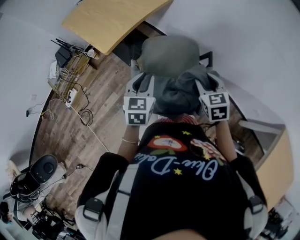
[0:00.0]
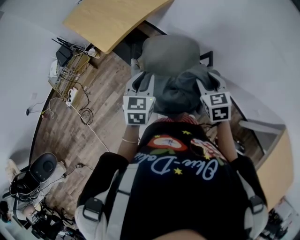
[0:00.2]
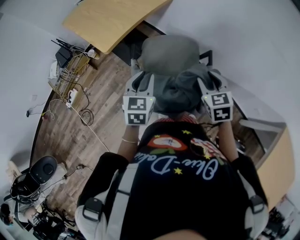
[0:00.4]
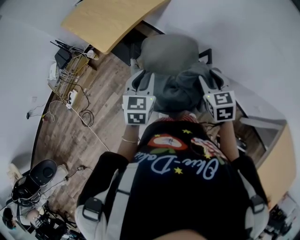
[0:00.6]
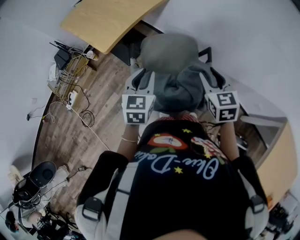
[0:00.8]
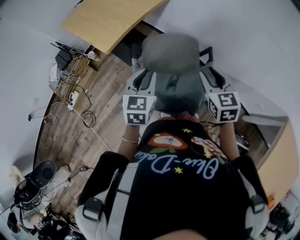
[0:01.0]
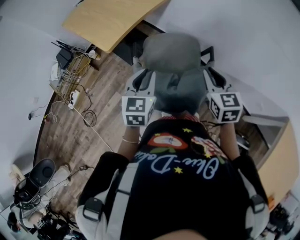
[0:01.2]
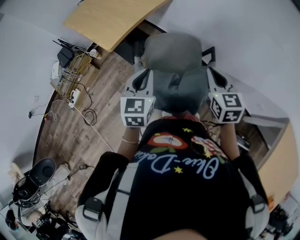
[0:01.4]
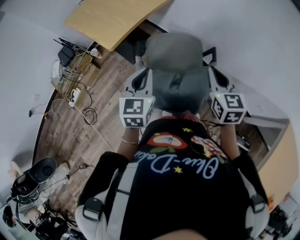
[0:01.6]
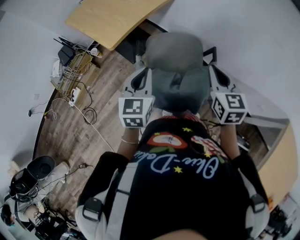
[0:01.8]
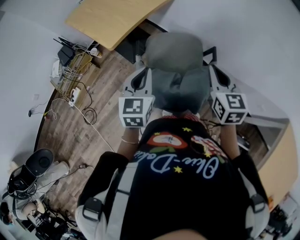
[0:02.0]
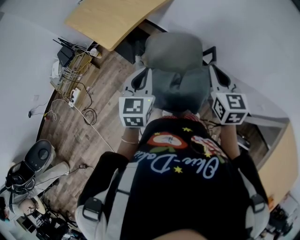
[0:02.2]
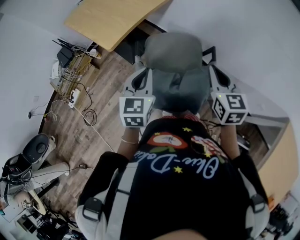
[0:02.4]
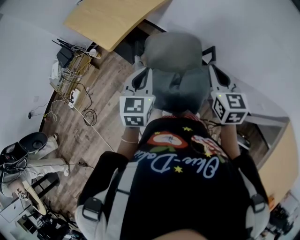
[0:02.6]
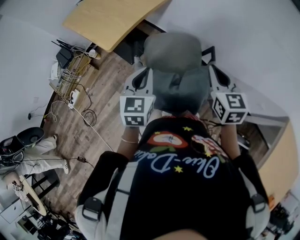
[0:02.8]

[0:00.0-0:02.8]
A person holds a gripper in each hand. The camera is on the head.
0:00.0 to 0:01.4: The right gripper heads upward, covering about 5 cm, and closes; the left gripper moves approximately 5 cm.
0:01.4 to 0:02.8: The grippers move only a little.

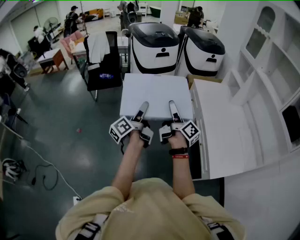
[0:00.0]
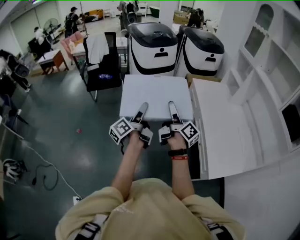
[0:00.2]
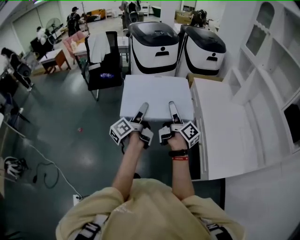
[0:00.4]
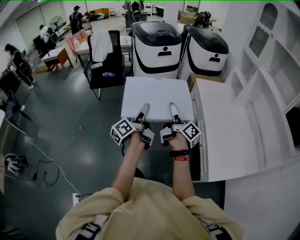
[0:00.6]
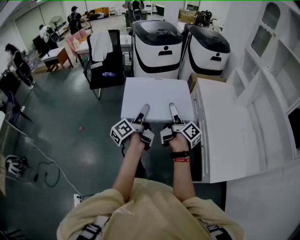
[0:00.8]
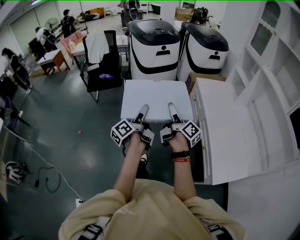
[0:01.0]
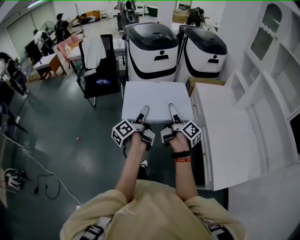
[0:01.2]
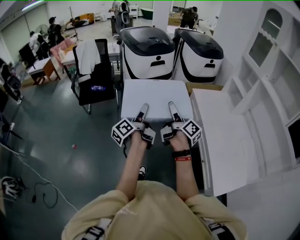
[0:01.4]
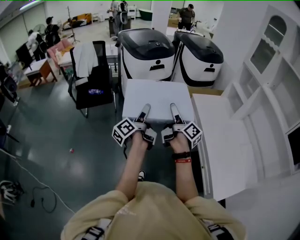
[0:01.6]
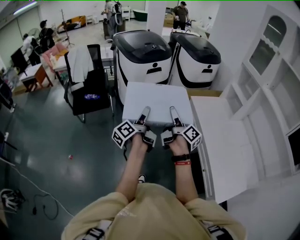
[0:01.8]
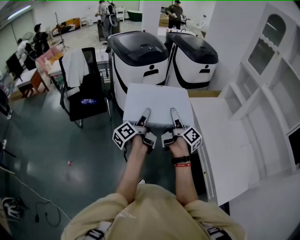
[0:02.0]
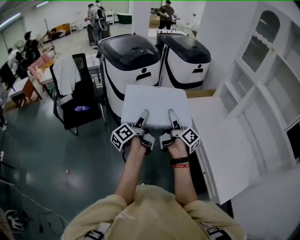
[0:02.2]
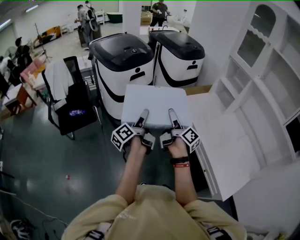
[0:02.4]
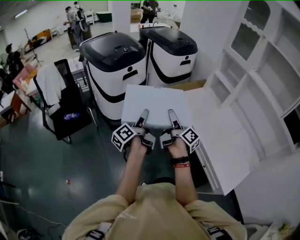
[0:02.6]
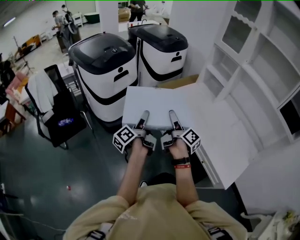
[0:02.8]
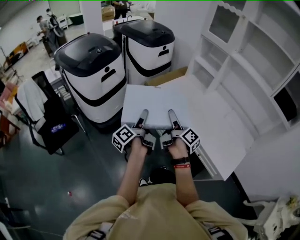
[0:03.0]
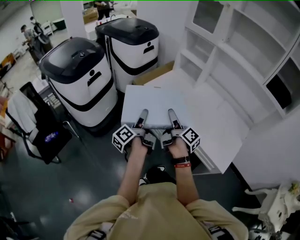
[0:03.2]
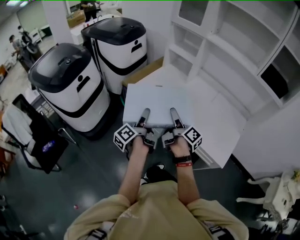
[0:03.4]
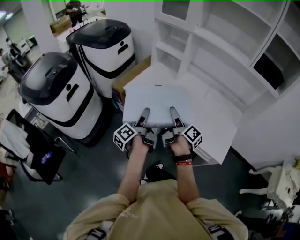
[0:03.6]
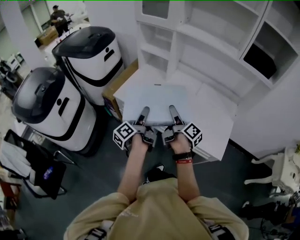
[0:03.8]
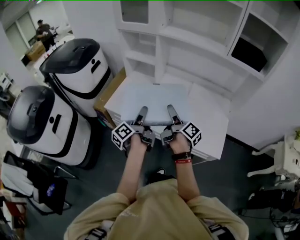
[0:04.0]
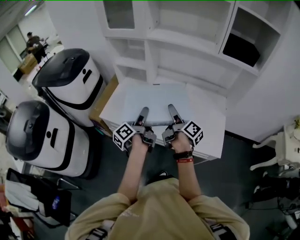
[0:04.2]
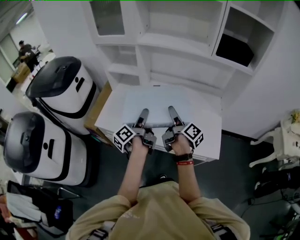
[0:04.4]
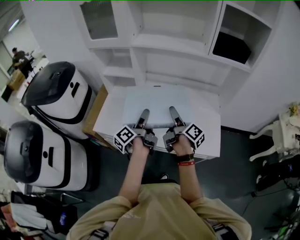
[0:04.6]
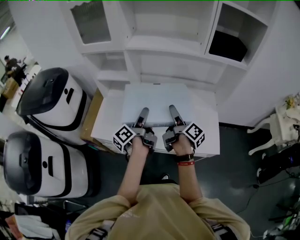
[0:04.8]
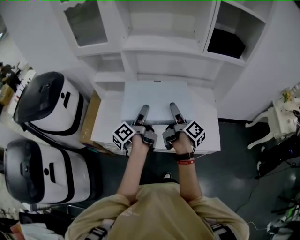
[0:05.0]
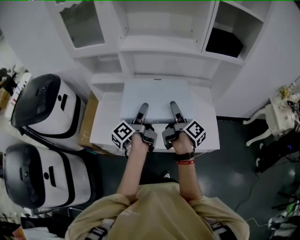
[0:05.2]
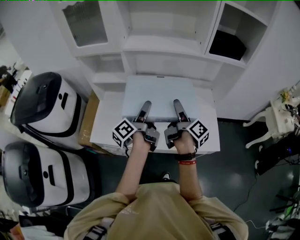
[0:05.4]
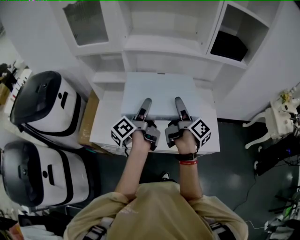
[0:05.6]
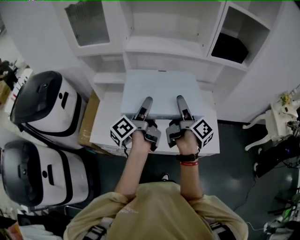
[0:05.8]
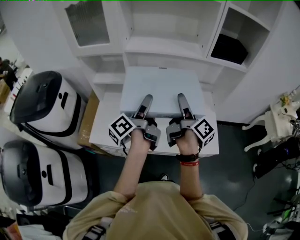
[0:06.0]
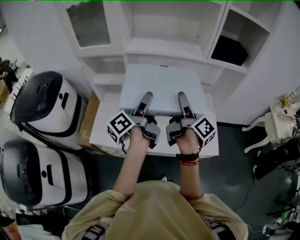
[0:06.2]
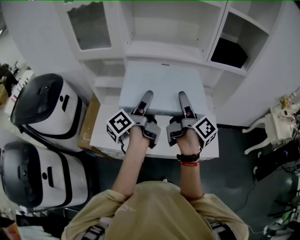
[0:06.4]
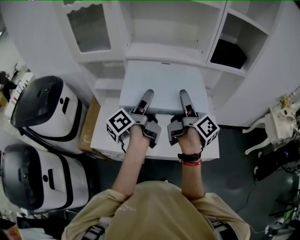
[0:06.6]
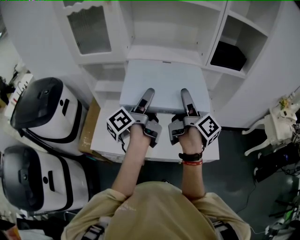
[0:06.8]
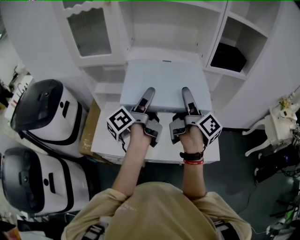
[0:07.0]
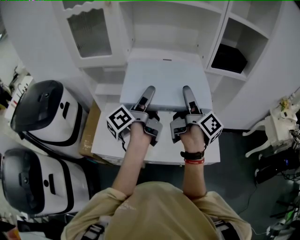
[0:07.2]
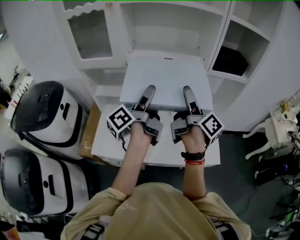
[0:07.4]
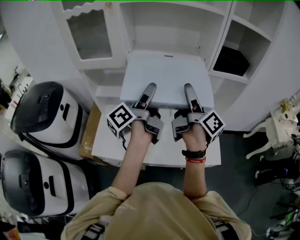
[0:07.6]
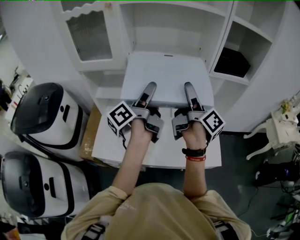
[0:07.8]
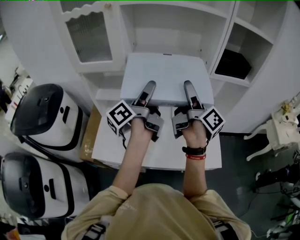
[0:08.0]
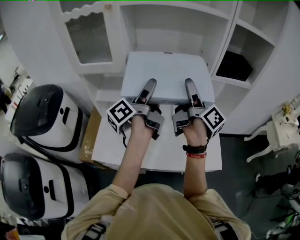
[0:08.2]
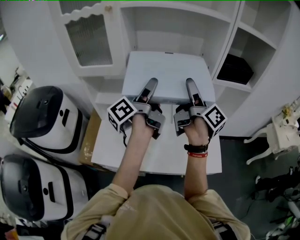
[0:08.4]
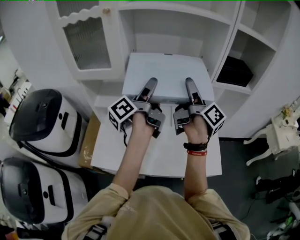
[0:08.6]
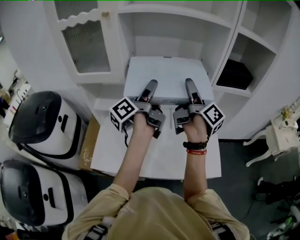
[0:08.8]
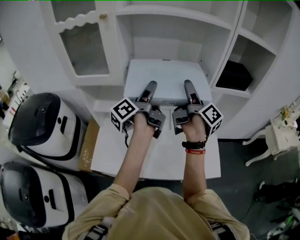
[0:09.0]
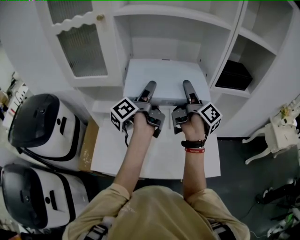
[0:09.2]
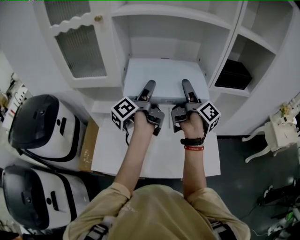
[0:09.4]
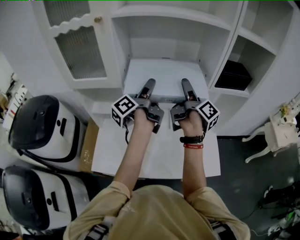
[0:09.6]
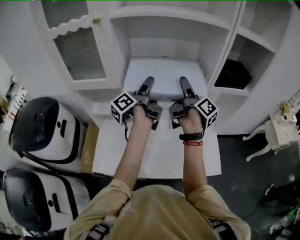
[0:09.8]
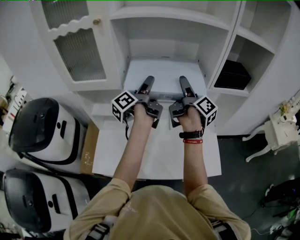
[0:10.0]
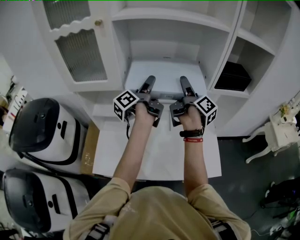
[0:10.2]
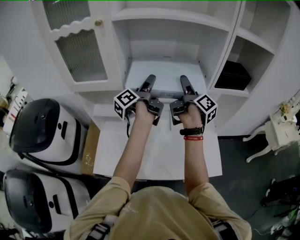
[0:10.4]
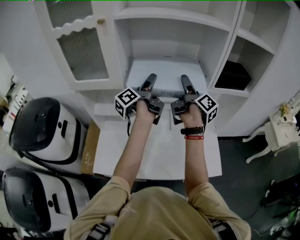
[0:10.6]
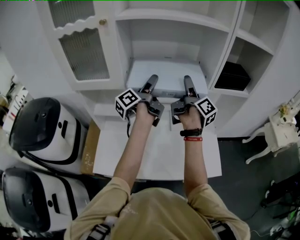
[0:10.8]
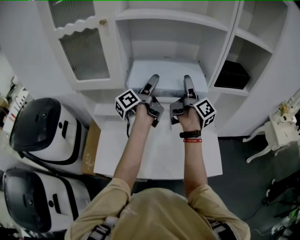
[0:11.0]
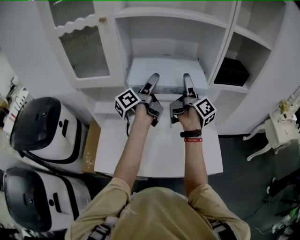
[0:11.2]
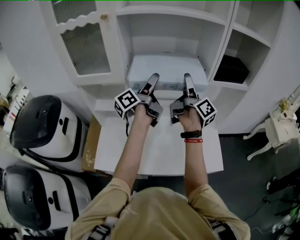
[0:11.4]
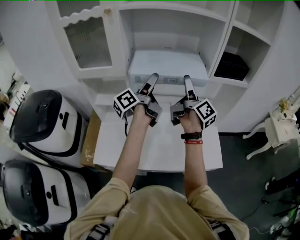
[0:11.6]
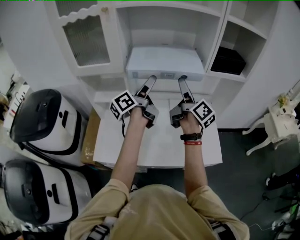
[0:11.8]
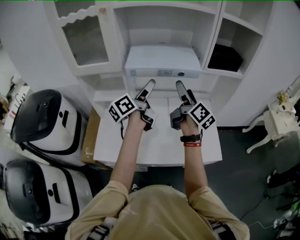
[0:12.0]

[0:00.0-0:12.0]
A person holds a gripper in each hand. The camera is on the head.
0:00.0 to 0:01.6: Both grippers travel together forward, about 25 cm.
0:01.6 to 0:03.0: The right gripper changes place by about 15 cm, and turns by roughly 30 degrees, while the left gripper moves some 20 cm, and turns by roughly 30 degrees.
0:03.0 to 0:04.4: The left gripper moves about 40 cm, and swivels about 40 degrees, while the right gripper moves some 35 cm, and swivels roughly 40 degrees.
0:04.4 to 0:06.0: The left gripper travels upward and forward by approximately 15 cm. Meanwhile the right gripper travels upward by roughly 10 cm.
0:06.0 to 0:07.6: The grippers both shift upward and forward by roughly 10 cm.
0:07.6 to 0:09.0: The grippers both shift forward by roughly 10 cm.
0:09.0 to 0:10.4: The two grippers go some 5 cm forward.
0:10.4 to 0:12.0: Both grippers travel together backward, about 10 cm. The left gripper turns by roughly 20 degrees. Meanwhile the right gripper rotates roughly 30 degrees.

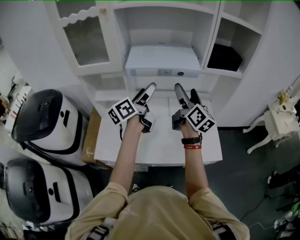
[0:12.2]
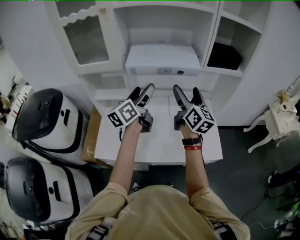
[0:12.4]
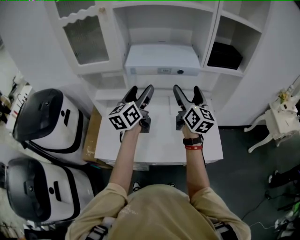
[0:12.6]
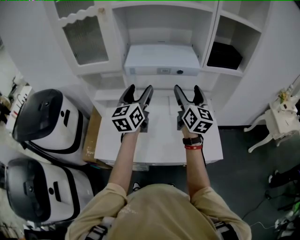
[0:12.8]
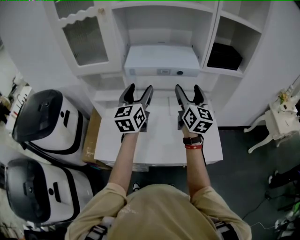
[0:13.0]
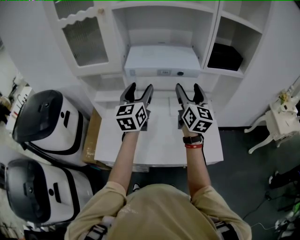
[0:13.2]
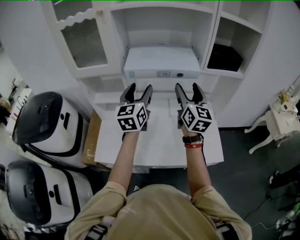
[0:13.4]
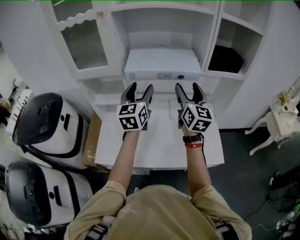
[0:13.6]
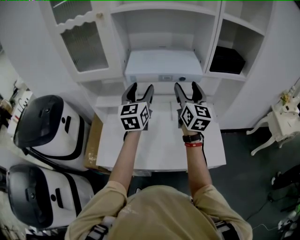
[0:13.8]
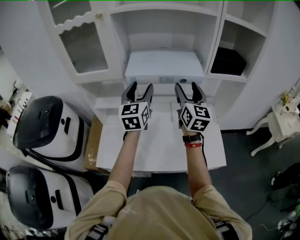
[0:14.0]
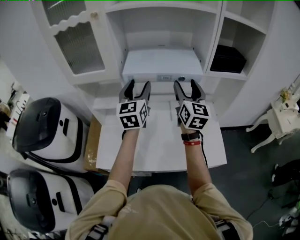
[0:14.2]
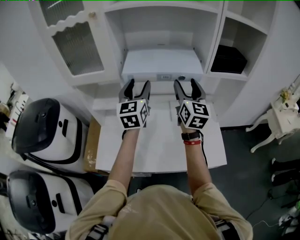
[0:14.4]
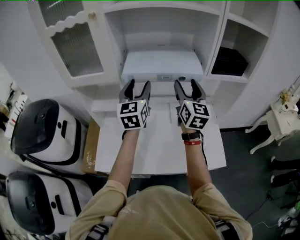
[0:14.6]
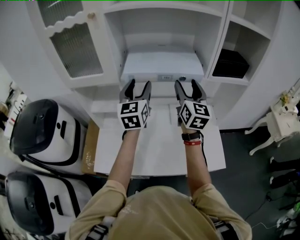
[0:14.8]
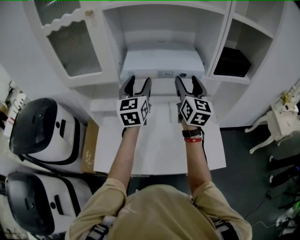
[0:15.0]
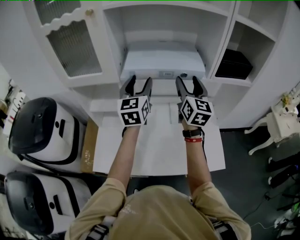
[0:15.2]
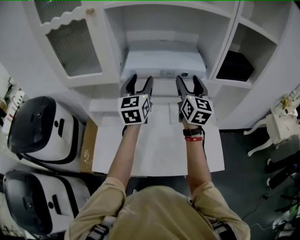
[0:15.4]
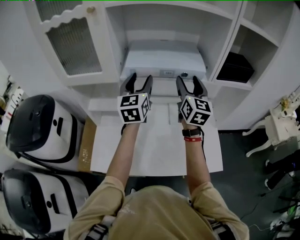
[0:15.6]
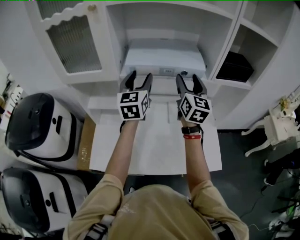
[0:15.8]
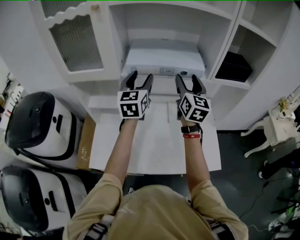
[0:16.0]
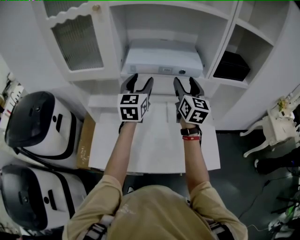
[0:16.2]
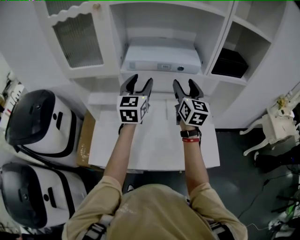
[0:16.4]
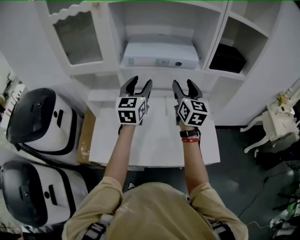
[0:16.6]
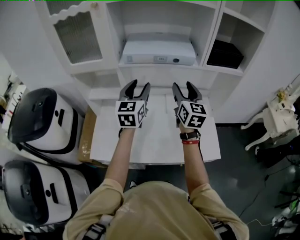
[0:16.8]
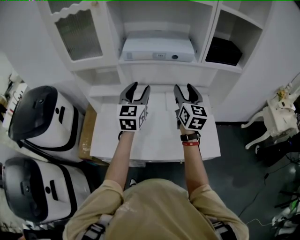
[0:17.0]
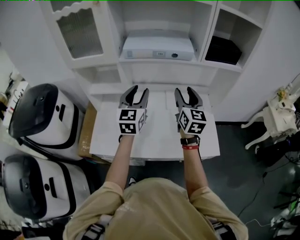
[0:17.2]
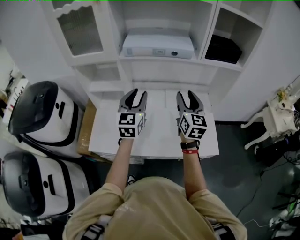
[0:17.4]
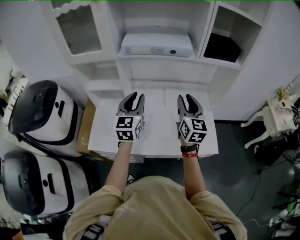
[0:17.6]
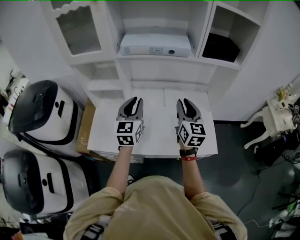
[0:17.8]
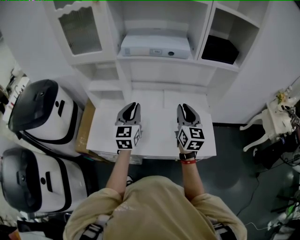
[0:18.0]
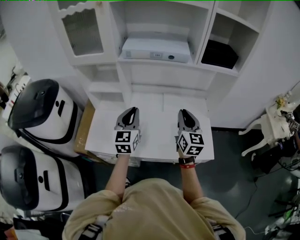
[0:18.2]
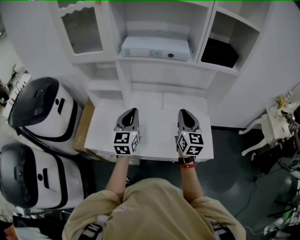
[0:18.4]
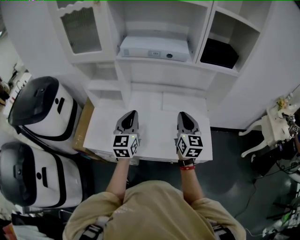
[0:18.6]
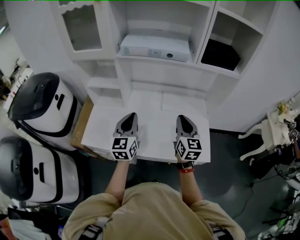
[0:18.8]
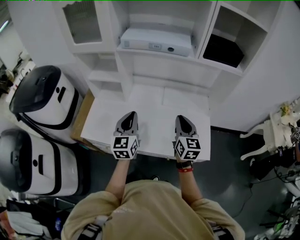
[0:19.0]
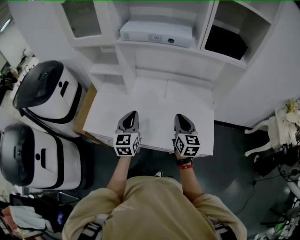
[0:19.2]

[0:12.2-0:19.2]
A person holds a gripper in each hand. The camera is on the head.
0:12.2 to 0:13.6: The right gripper rotates about 30 degrees, and closes. Meanwhile the left gripper rolls clockwise, seen from behind, by some 50 degrees.
0:13.6 to 0:15.0: The two grippers go about 10 cm forward.
0:15.0 to 0:16.4: There are only small adjustments of the grippers.
0:16.4 to 0:17.8: Both grippers travel together backward and downward, roughly 15 cm. The right gripper closes up; the left gripper closes.
0:17.8 to 0:19.2: The left gripper shifts about 15 cm downward and backward. Meanwhile the right gripper heads downward, covering approximately 10 cm.

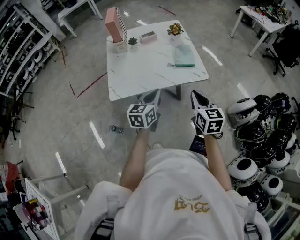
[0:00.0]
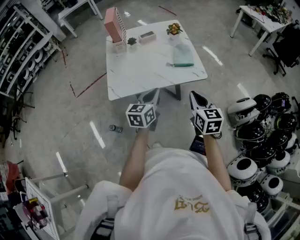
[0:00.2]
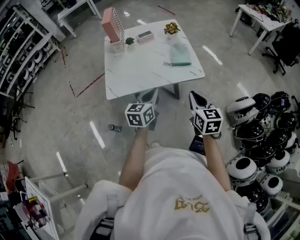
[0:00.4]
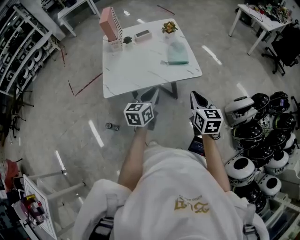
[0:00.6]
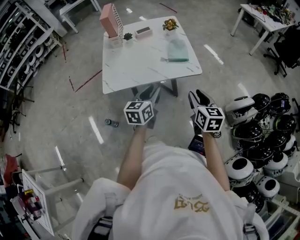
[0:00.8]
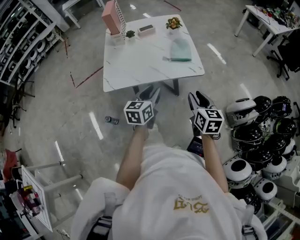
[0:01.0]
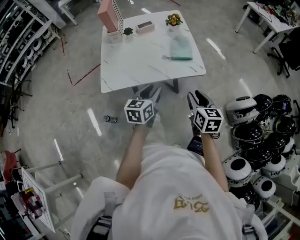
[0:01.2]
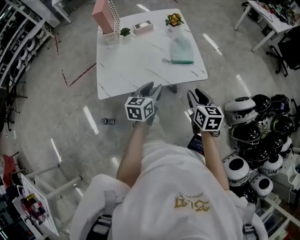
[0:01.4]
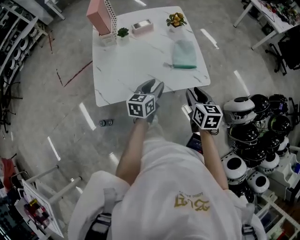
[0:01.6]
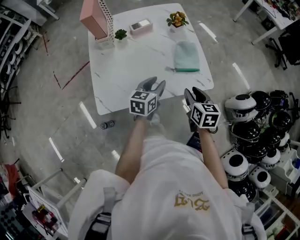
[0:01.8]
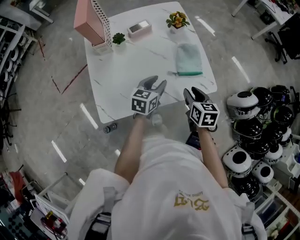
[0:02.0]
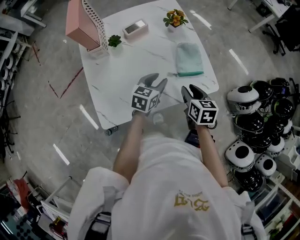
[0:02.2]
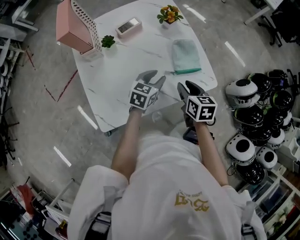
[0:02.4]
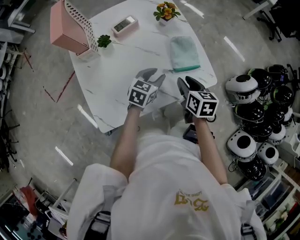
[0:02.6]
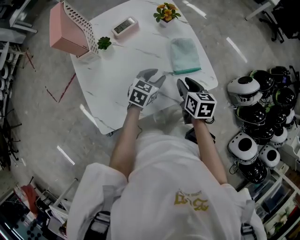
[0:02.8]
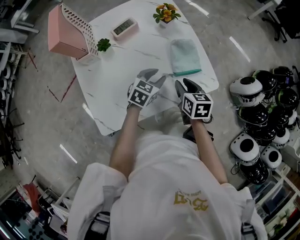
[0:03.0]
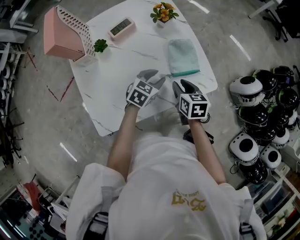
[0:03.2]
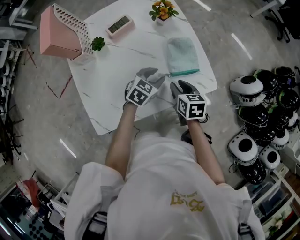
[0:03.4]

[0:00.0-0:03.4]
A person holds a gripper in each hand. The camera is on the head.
0:00.0 to 0:01.6: Both grippers move forward and downward, roughly 15 cm. The right gripper opens; the left gripper opens up.
0:01.6 to 0:03.4: The right gripper moves downward, forward and to the left, roughly 20 cm. Meanwhile the left gripper shifts some 20 cm forward and downward, and rotates roughly 50 degrees.
